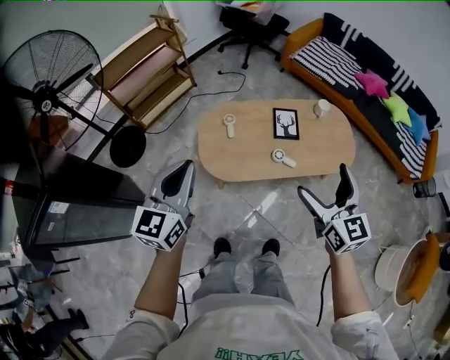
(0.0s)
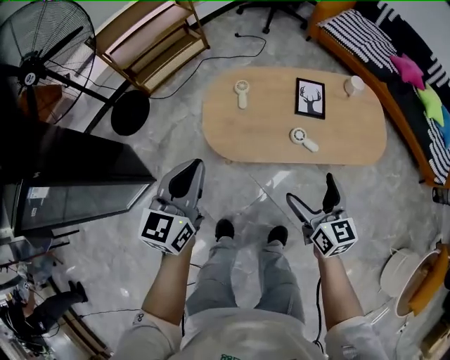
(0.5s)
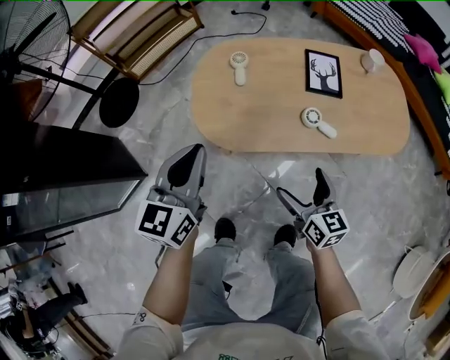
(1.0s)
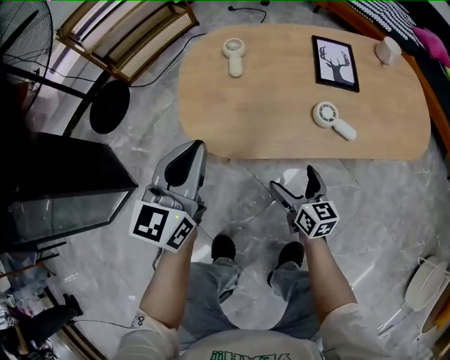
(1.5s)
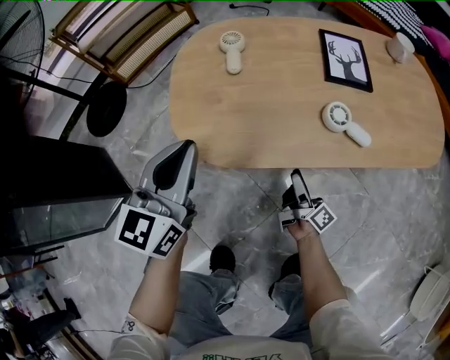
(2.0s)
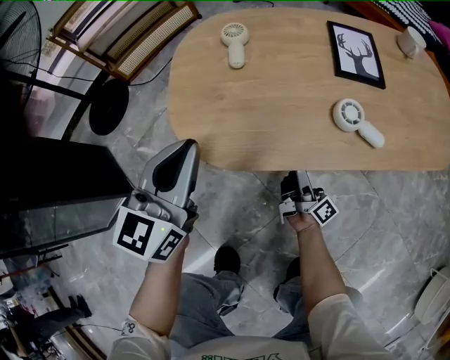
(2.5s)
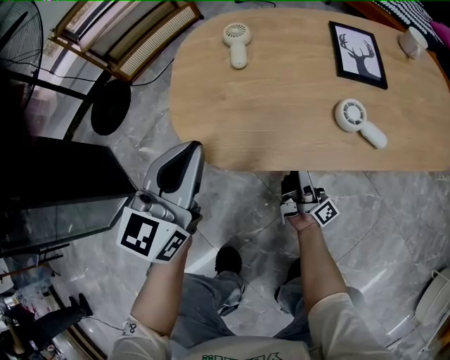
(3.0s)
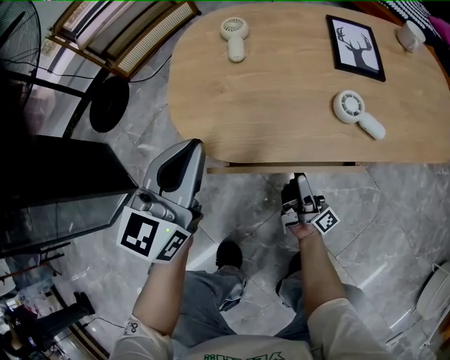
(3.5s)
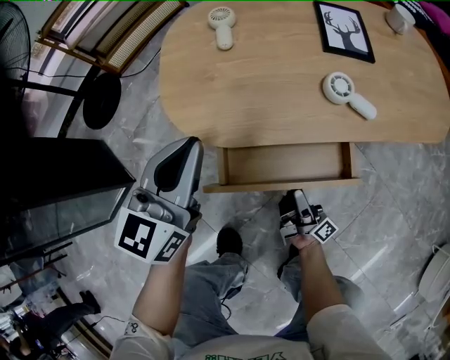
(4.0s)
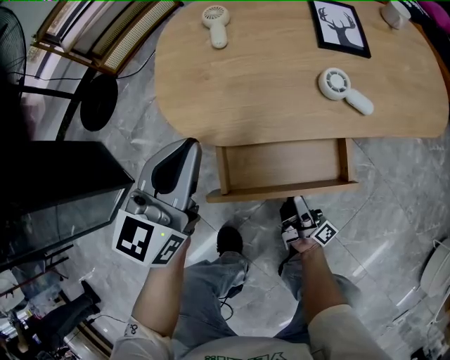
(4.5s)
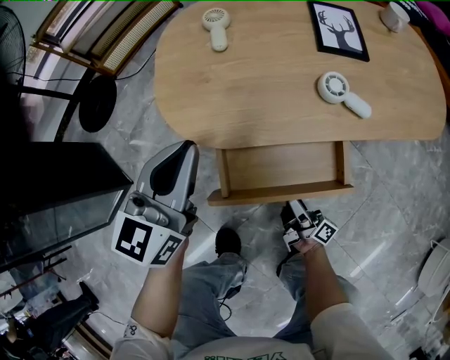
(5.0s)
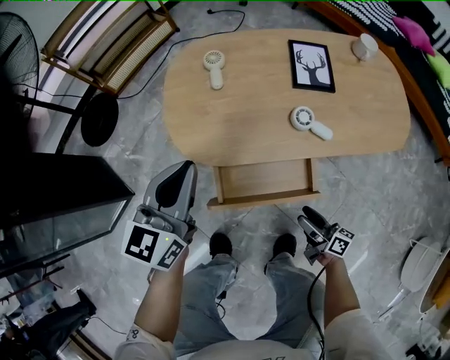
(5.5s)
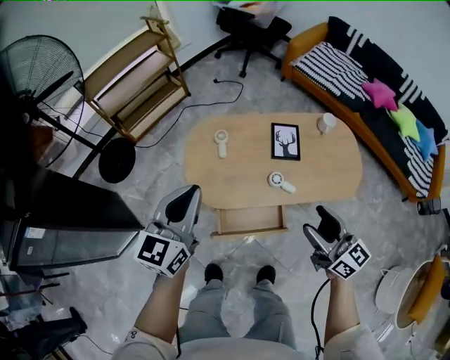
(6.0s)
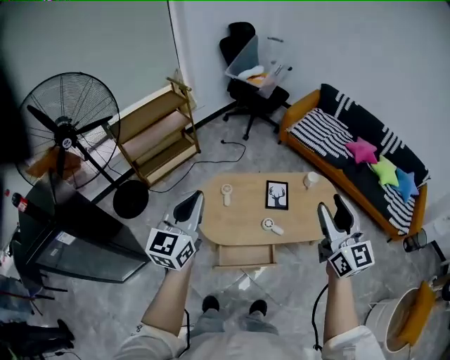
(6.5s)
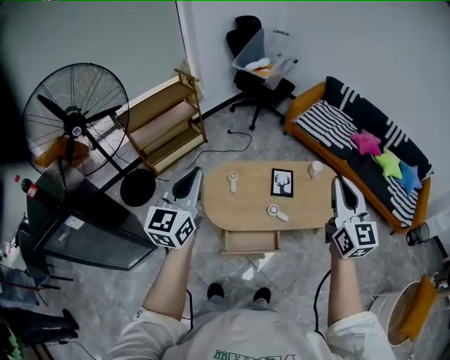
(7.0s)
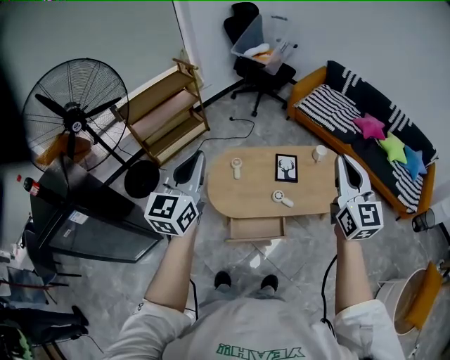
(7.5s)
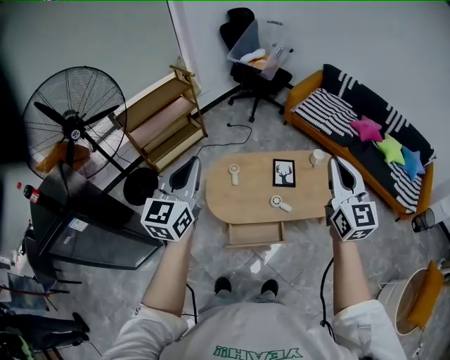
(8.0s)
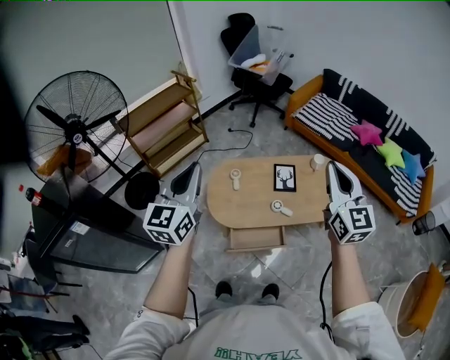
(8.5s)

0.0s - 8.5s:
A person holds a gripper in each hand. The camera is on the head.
0.0s - 2.0s: The left gripper shifts approximately 40 cm downward. The right gripper goes approximately 70 cm downward, and rotates around the line of its fingers by some 70 degrees, clockwise from behind.
2.0s - 4.0s: The right gripper shifts some 10 cm backward.
4.0s - 6.5s: The left gripper goes about 50 cm upward; the right gripper heads upward, covering roughly 80 cm, and rolls counterclockwise, seen from behind, by roughly 80 degrees.
6.5s - 8.5s: The left gripper heads upward, covering some 5 cm, while the right gripper closes up.

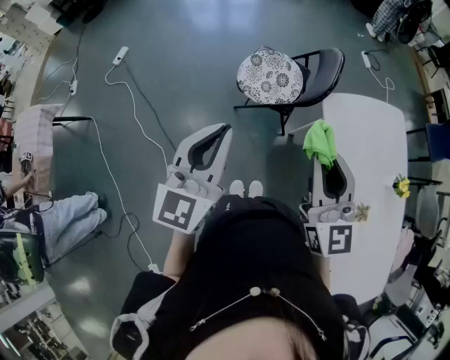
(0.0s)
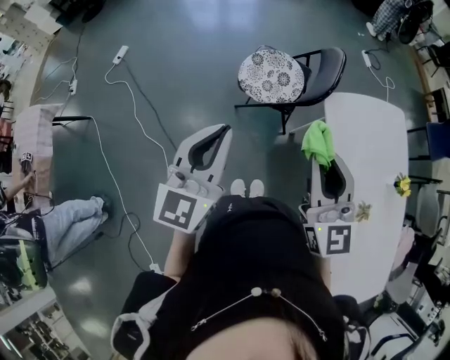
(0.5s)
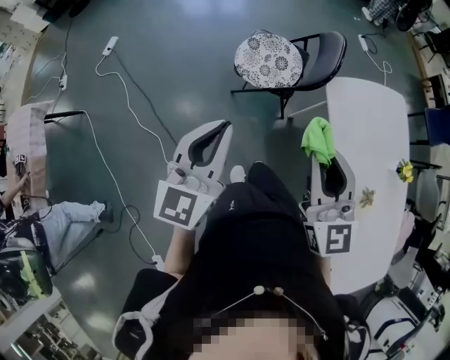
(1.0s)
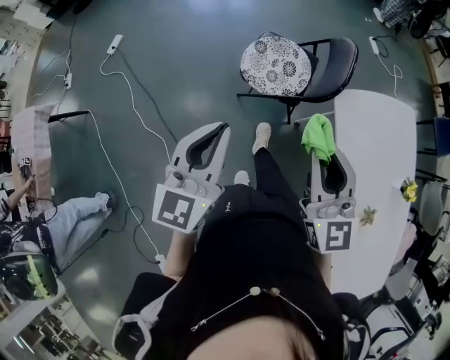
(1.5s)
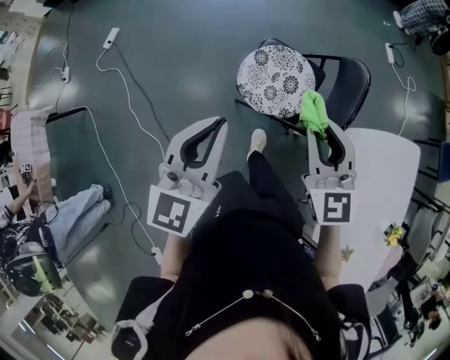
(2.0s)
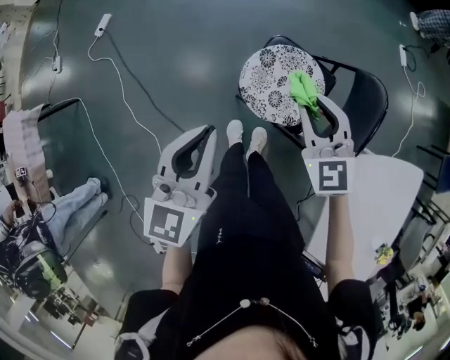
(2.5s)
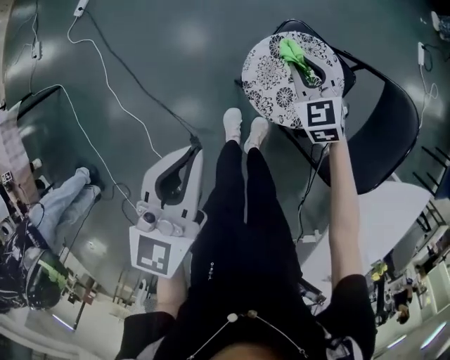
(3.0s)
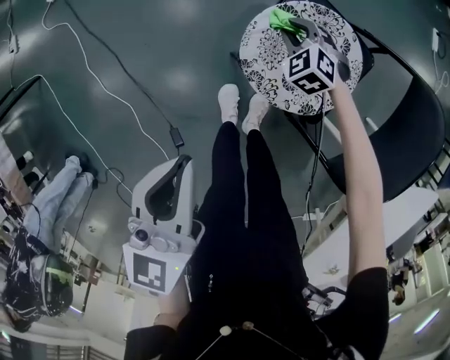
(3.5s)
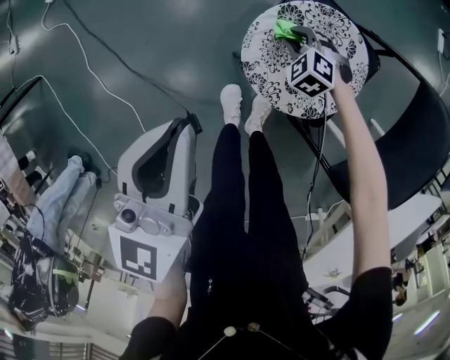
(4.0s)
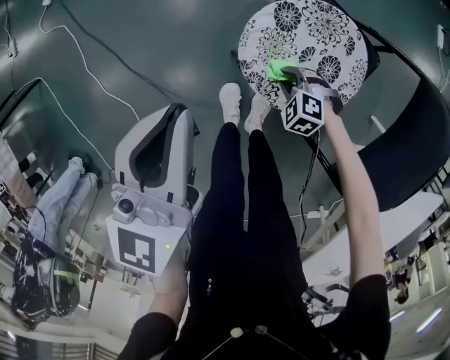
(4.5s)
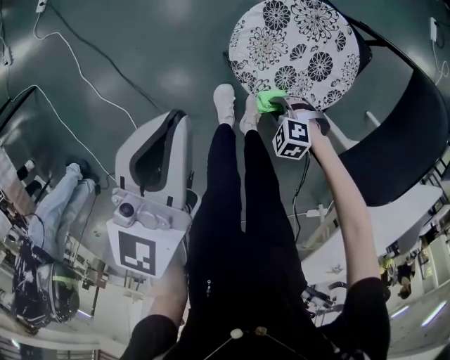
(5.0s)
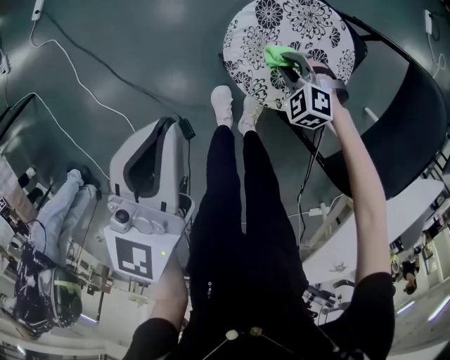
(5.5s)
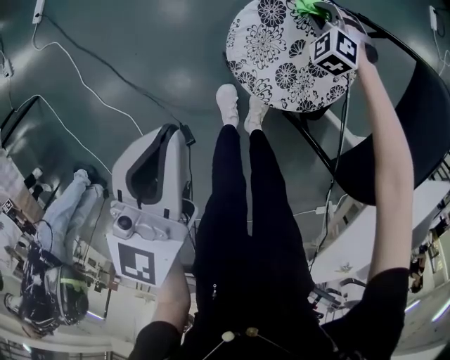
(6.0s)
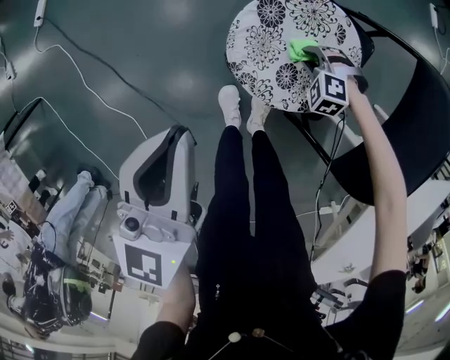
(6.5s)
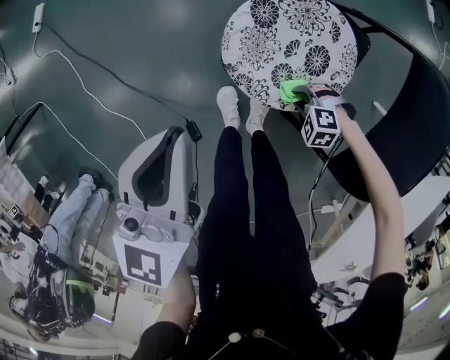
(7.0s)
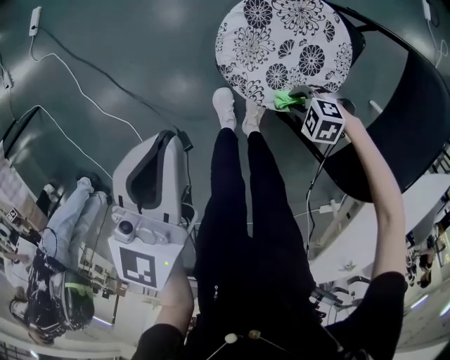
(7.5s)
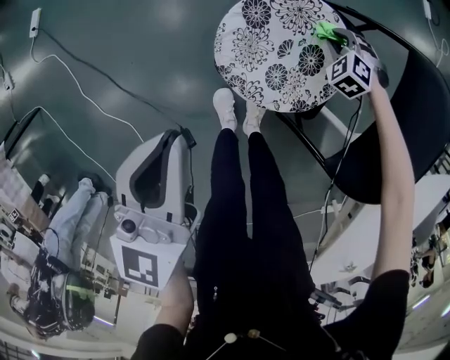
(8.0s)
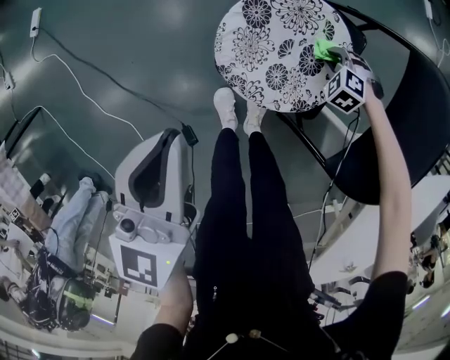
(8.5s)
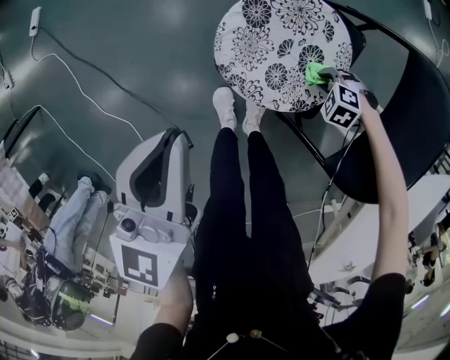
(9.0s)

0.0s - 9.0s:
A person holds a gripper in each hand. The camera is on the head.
0.0s - 2.0s: The two grippers go about 30 cm forward.
2.0s - 4.5s: The right gripper heads downward, covering about 60 cm, and angles its fingers downward, by about 60 degrees; the left gripper shifts roughly 30 cm downward.

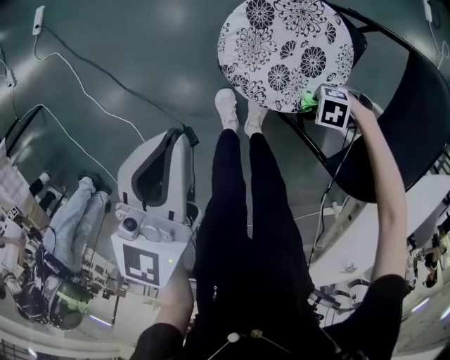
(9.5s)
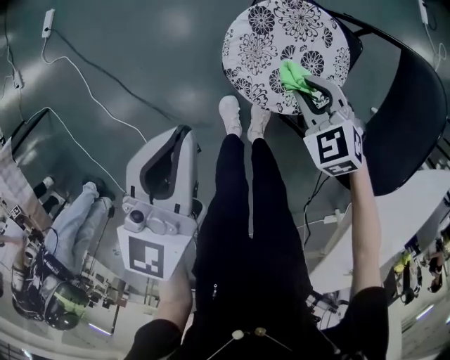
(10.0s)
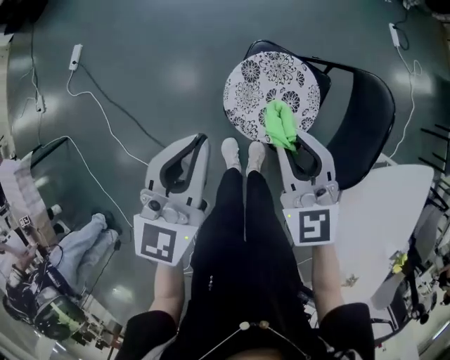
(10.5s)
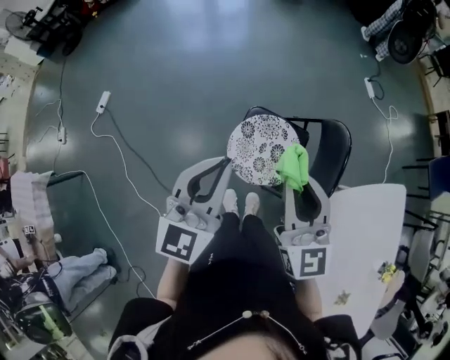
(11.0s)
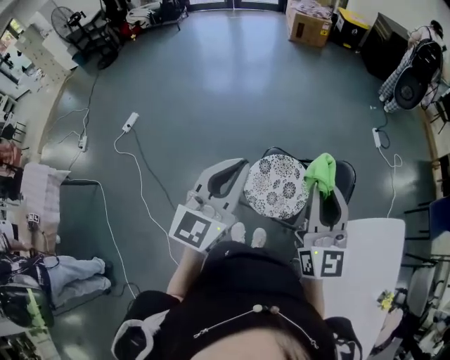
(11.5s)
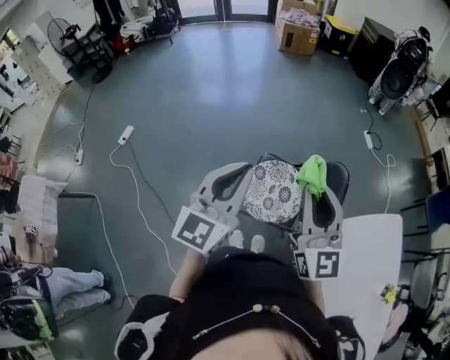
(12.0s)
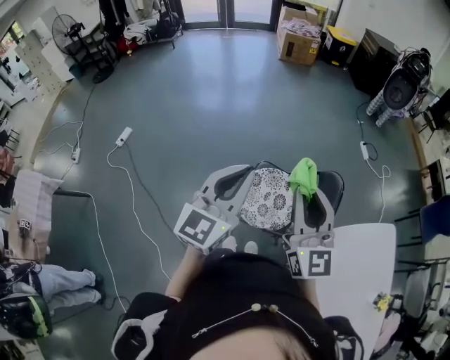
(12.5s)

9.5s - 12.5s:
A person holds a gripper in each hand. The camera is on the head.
9.5s - 11.0s: The left gripper heads upward, covering about 30 cm, and rotates some 30 degrees. Meanwhile the right gripper travels upward by about 70 cm, and angles its fingers upward, by approximately 60 degrees.
11.0s - 12.5s: The grippers both shift upward by about 10 cm.

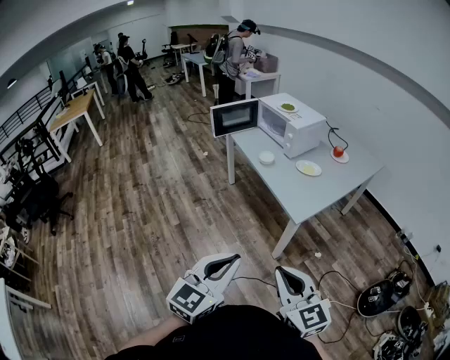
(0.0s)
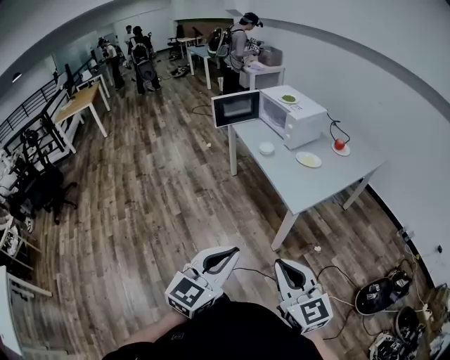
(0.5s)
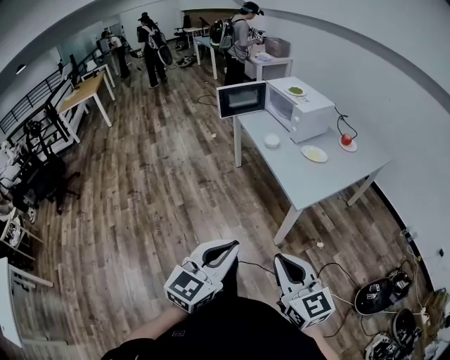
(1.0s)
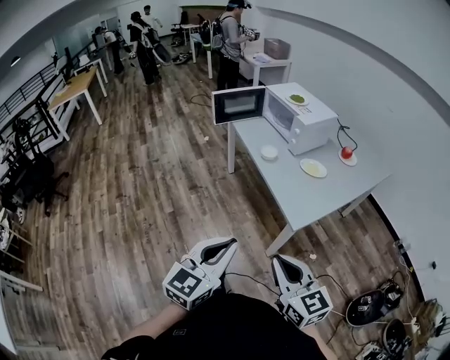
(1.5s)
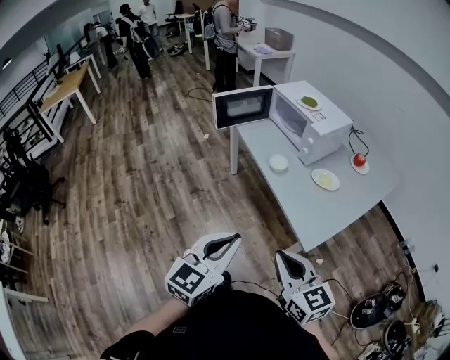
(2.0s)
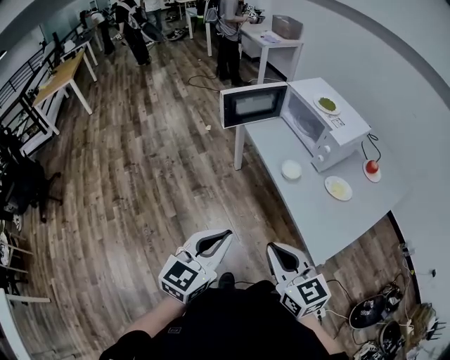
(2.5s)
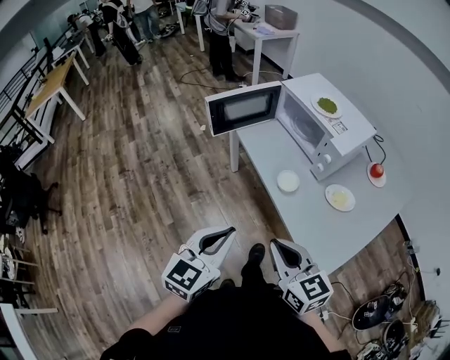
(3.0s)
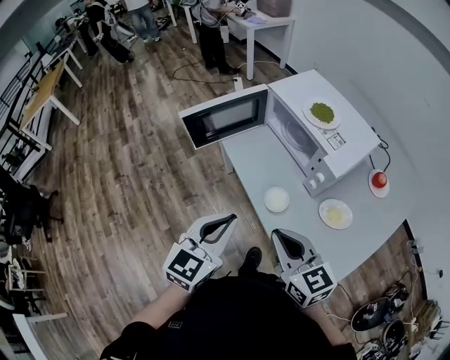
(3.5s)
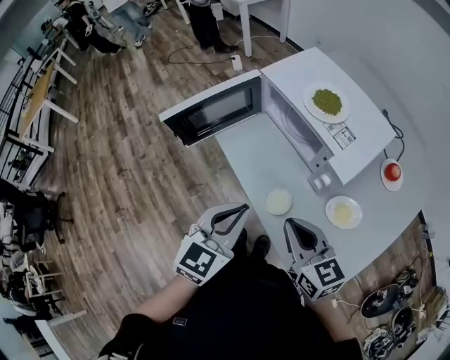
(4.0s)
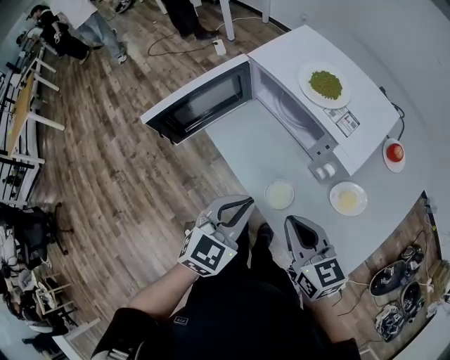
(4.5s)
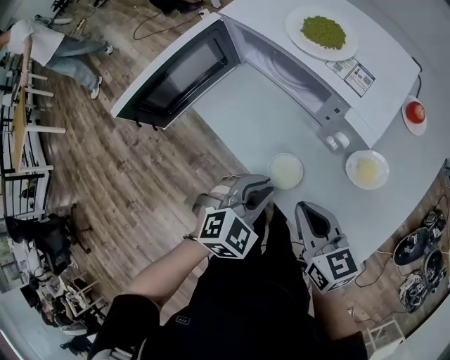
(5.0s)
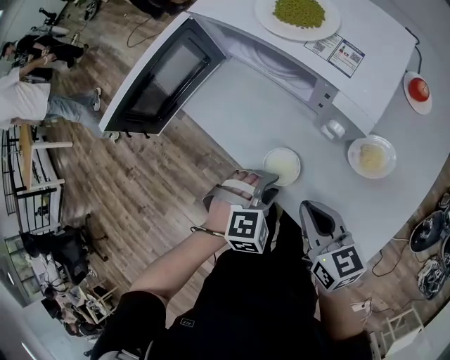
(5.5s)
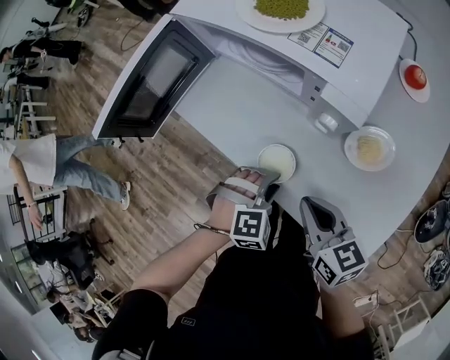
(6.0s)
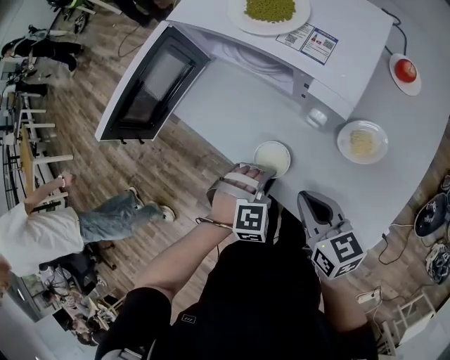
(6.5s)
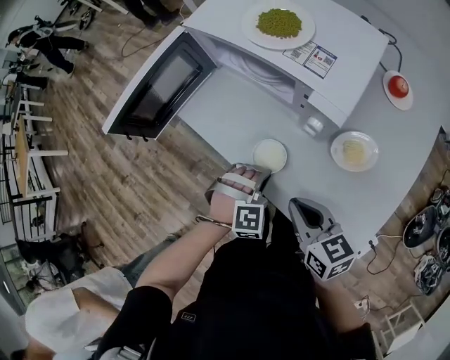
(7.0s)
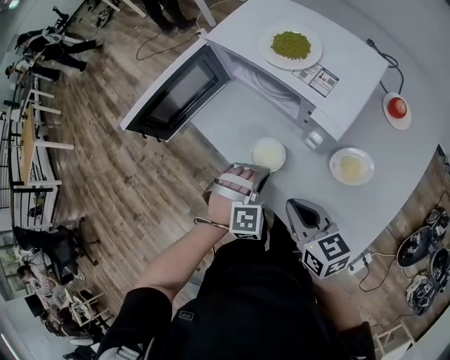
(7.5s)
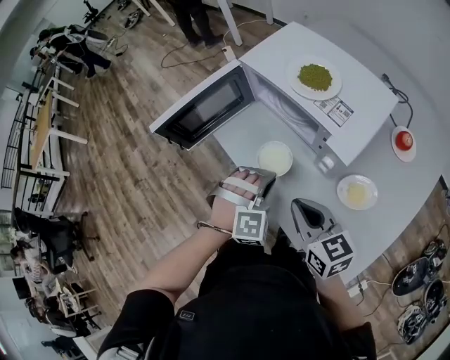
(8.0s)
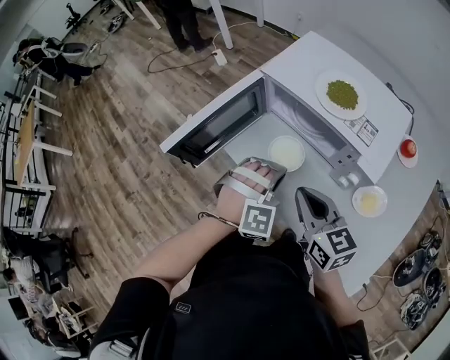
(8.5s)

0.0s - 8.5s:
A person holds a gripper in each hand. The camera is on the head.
0.0s - 2.0s: The grippers both shift forward by approximately 25 cm.
2.0s - 4.0s: Both grippers are carried forward, roughly 50 cm.
4.0s - 6.5s: The right gripper travels downward by roughly 15 cm, and rotates some 20 degrees, while the left gripper shifts approximately 25 cm downward, and twists about 60 degrees clockwise, seen from behind.
6.5s - 8.5s: The right gripper travels forward, to the left and upward by roughly 20 cm; the left gripper goes roughly 20 cm upward, forward and to the left, and changes its angle by some 20 degrees.
